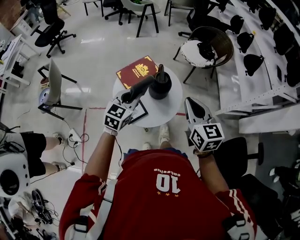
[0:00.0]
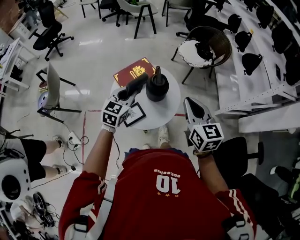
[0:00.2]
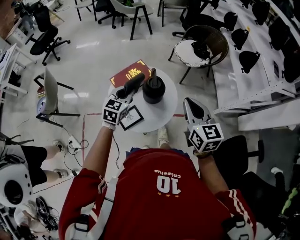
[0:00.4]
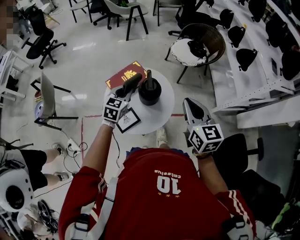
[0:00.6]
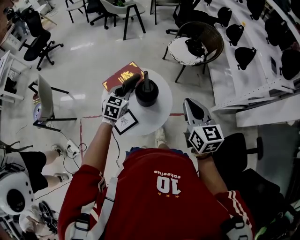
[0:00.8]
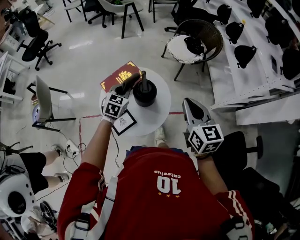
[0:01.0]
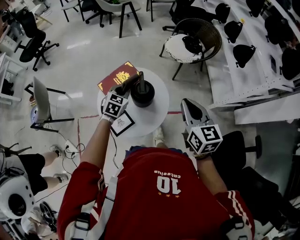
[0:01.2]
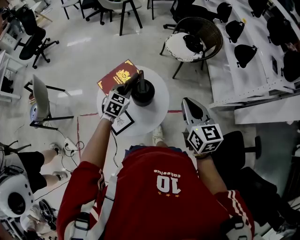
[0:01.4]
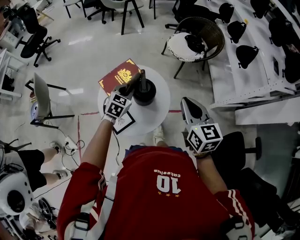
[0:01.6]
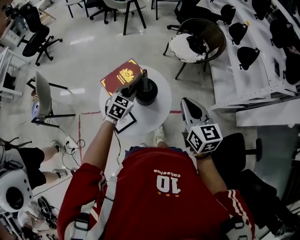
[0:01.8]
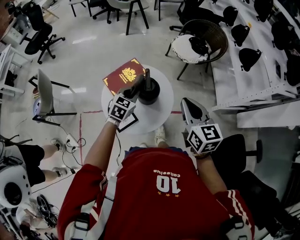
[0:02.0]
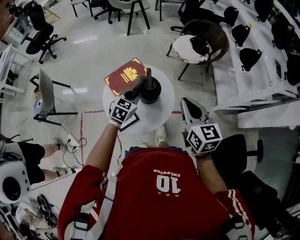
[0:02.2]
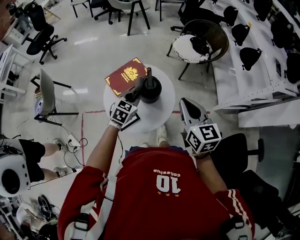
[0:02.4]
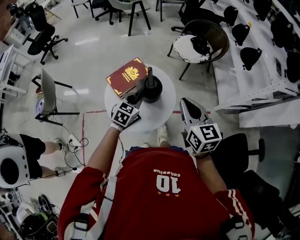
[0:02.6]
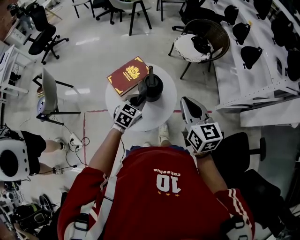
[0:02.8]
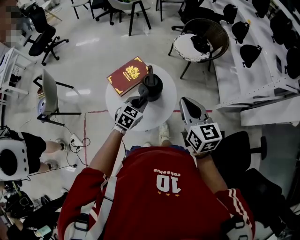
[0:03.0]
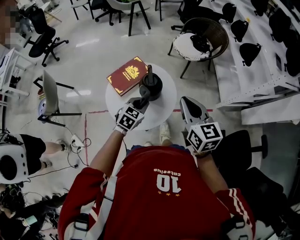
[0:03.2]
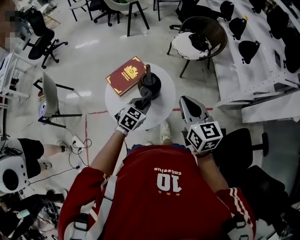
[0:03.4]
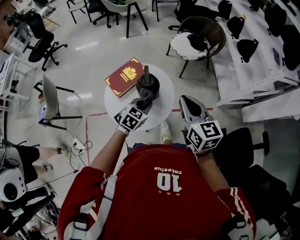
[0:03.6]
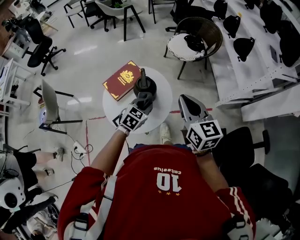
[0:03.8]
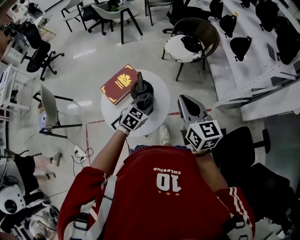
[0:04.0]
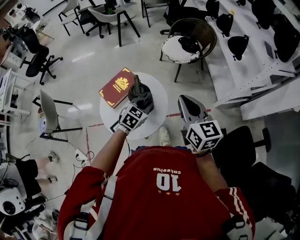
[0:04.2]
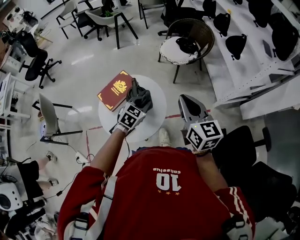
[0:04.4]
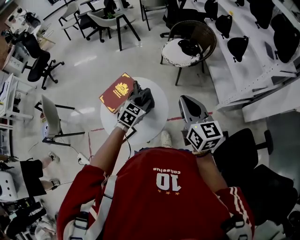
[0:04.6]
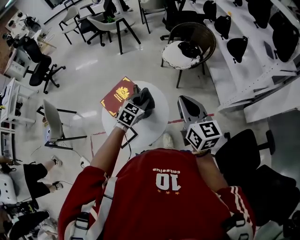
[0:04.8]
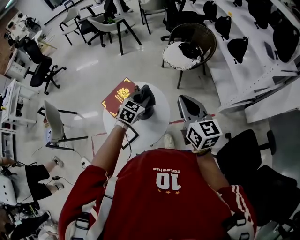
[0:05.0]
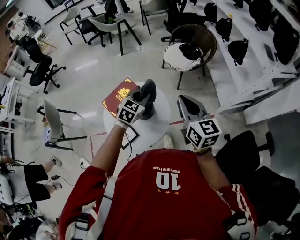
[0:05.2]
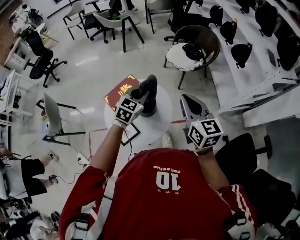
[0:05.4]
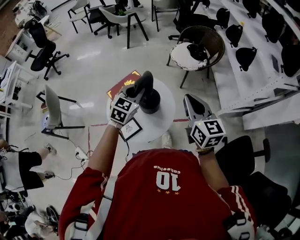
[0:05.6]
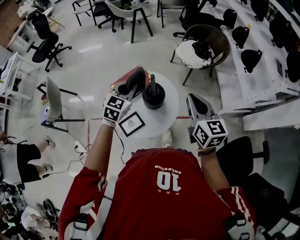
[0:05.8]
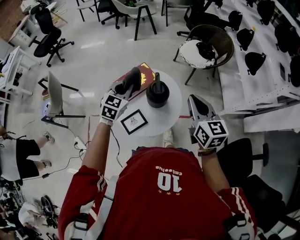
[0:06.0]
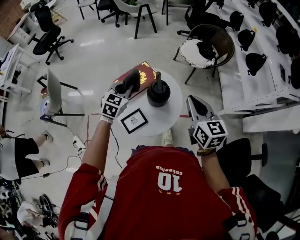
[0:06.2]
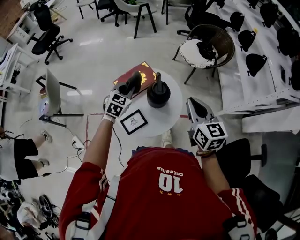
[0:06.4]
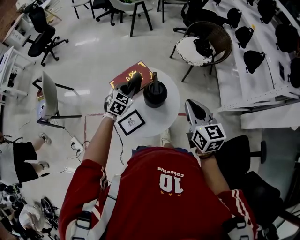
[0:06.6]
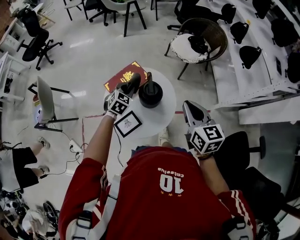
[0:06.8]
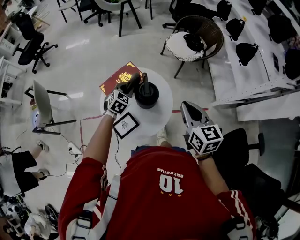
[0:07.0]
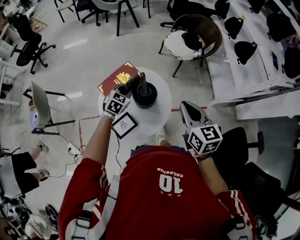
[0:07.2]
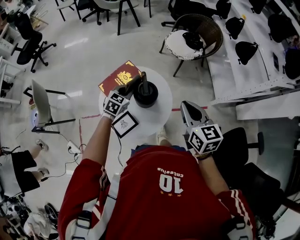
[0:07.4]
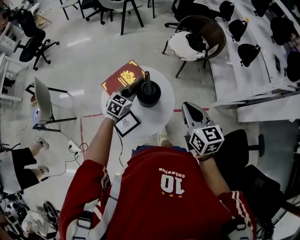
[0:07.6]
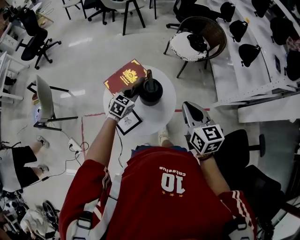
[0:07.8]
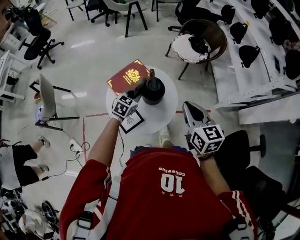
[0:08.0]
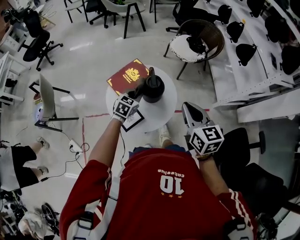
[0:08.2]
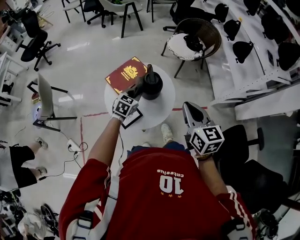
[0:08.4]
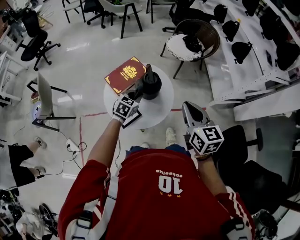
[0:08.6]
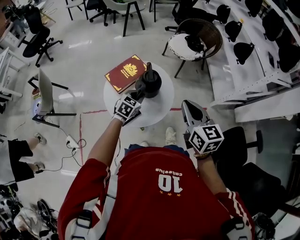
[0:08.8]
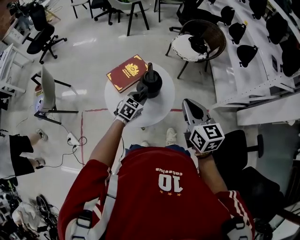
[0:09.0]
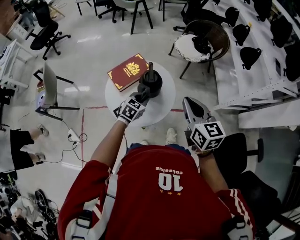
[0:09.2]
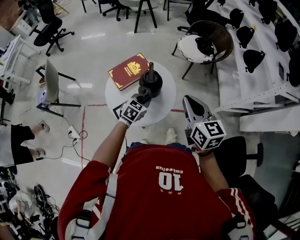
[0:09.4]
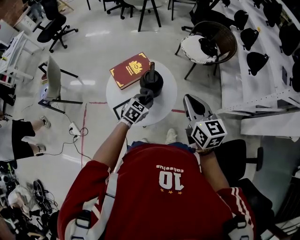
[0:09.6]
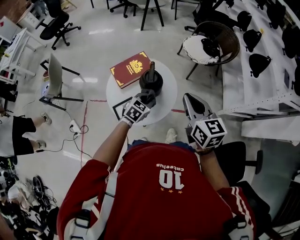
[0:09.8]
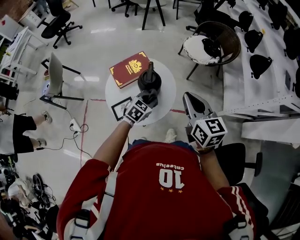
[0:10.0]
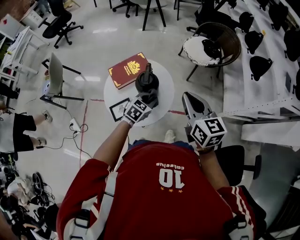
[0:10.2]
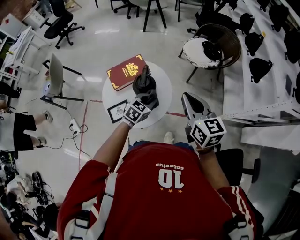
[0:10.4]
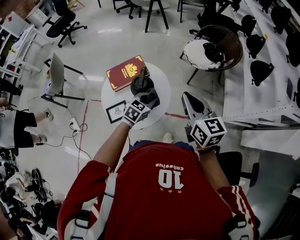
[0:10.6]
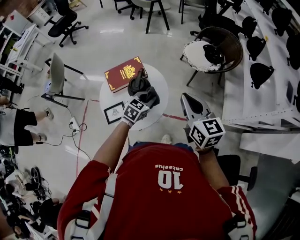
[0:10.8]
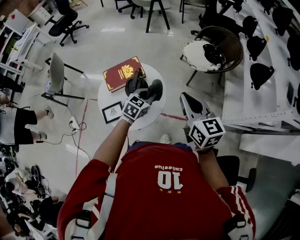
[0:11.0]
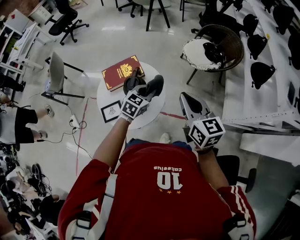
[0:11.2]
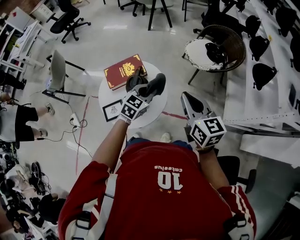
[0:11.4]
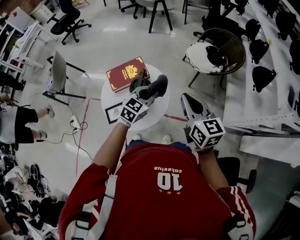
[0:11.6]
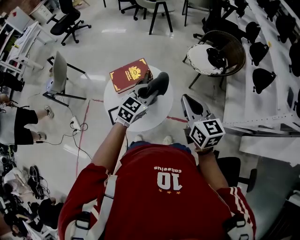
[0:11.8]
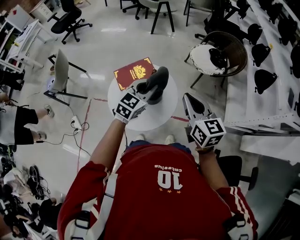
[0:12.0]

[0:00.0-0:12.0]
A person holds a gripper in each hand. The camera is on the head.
0.0 to 1.6 s: The right gripper heads forward and to the right, covering some 10 cm. The left gripper is displaced forward and downward by some 15 cm.
1.6 to 3.0 s: The right gripper ends up approximately 5 cm from where it was. The left gripper heads backward, covering approximately 10 cm.
3.0 to 4.4 s: The right gripper shifts about 10 cm to the right, while the left gripper travels to the right and forward by some 10 cm.
4.4 to 6.0 s: The right gripper shifts roughly 10 cm to the left. Meanwhile the left gripper travels to the left and upward by some 20 cm, and rotates some 20 degrees.
6.0 to 7.6 s: The left gripper goes approximately 15 cm downward.
7.6 to 9.0 s: The right gripper shifts some 5 cm backward. The left gripper goes roughly 10 cm backward and to the right.
9.0 to 10.4 s: The right gripper goes about 10 cm forward and to the right. The left gripper moves to the right, some 10 cm.
10.4 to 12.0 s: The left gripper travels upward by roughly 15 cm, and rotates about 20 degrees.

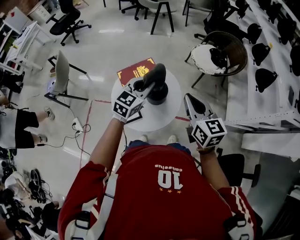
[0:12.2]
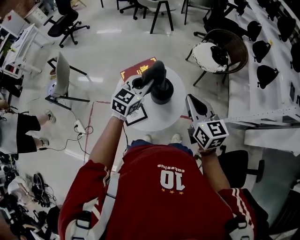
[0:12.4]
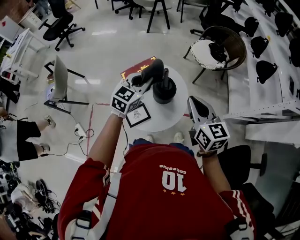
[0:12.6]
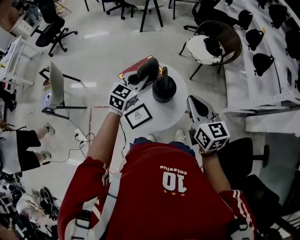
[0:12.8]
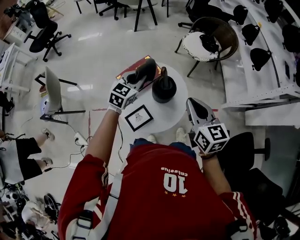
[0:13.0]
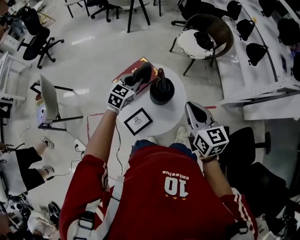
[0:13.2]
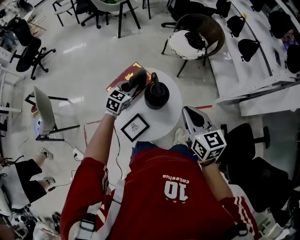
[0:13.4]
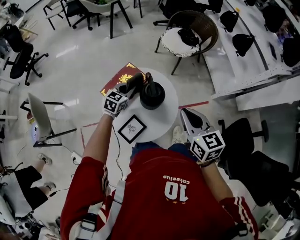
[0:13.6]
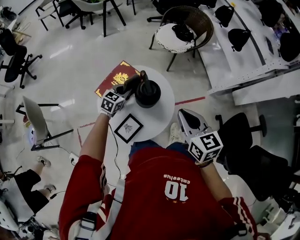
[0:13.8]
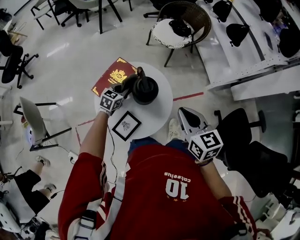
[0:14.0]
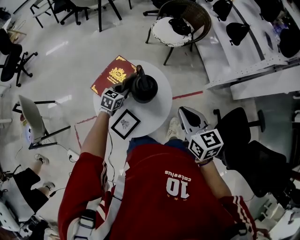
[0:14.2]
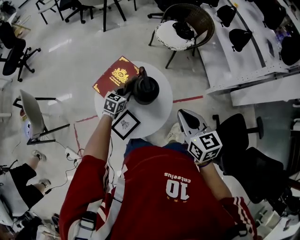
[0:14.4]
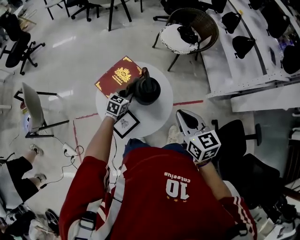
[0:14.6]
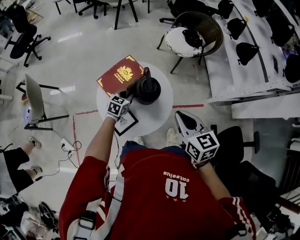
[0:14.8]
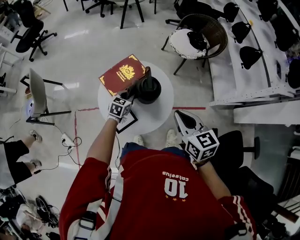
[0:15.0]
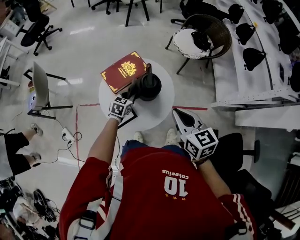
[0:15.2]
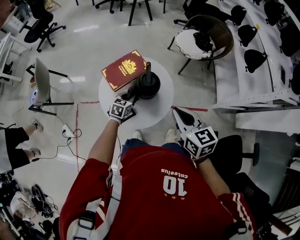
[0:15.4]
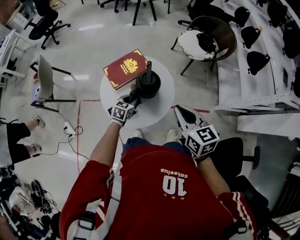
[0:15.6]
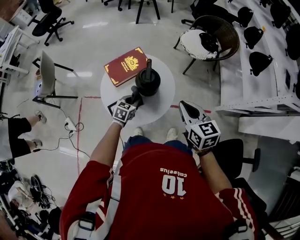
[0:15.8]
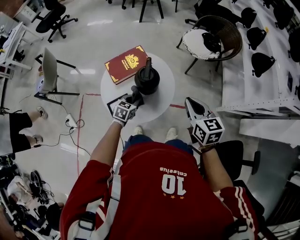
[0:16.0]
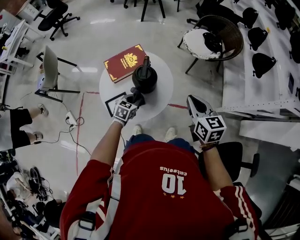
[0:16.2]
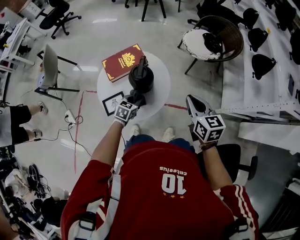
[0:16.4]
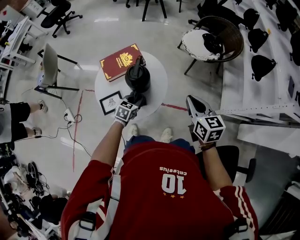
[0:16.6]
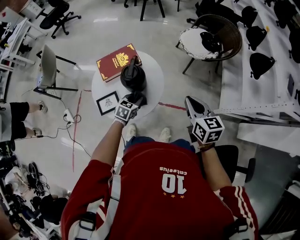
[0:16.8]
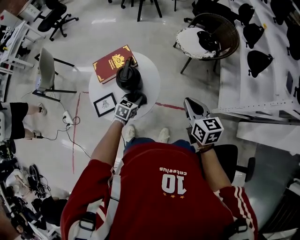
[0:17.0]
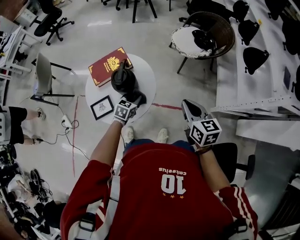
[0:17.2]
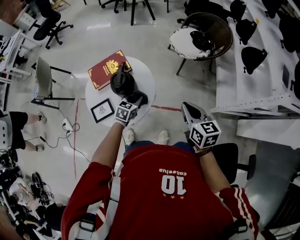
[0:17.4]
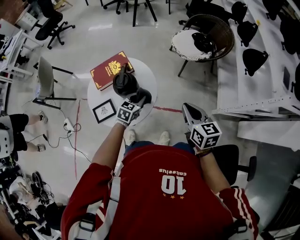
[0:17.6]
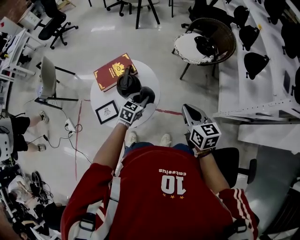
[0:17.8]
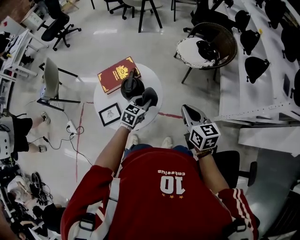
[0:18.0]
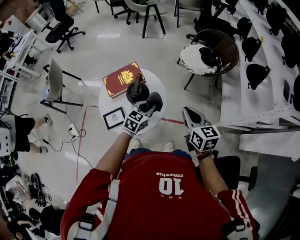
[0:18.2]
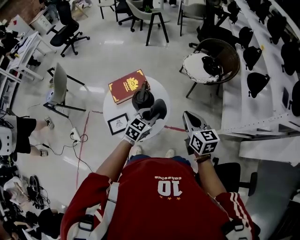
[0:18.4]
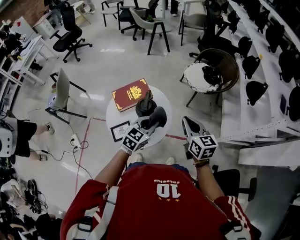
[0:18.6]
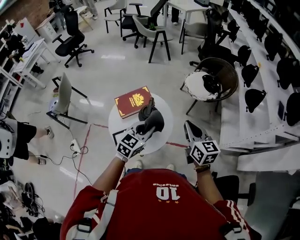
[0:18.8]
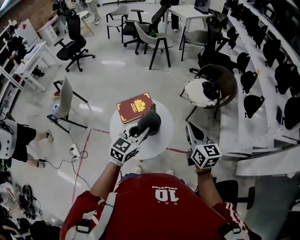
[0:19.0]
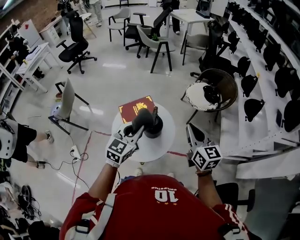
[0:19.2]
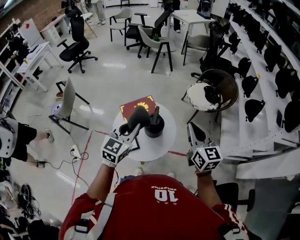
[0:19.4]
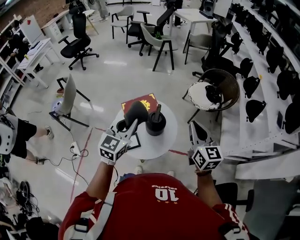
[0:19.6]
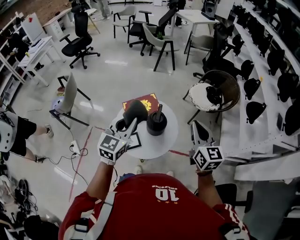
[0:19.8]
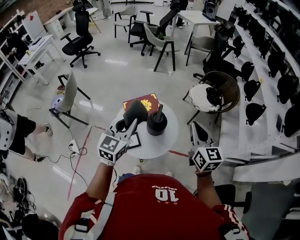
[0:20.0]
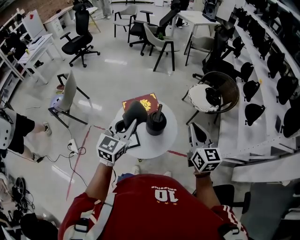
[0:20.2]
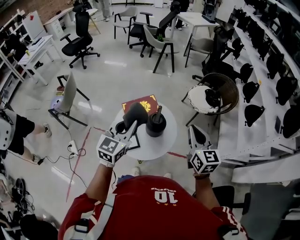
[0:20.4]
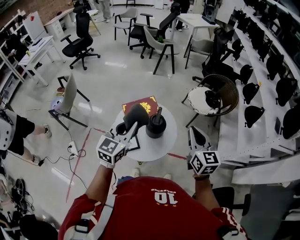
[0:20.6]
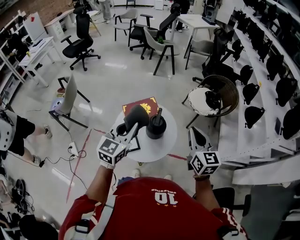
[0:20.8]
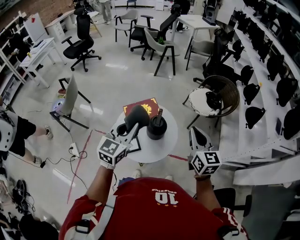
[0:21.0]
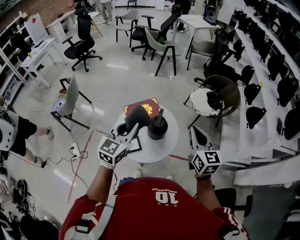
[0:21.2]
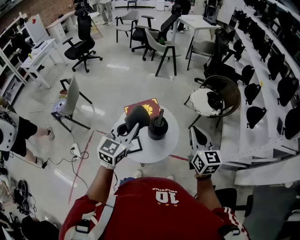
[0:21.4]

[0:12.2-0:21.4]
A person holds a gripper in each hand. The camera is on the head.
12.2 to 13.8 s: The left gripper is displaced downward by about 20 cm, and changes its angle by about 30 degrees. Meanwhile the right gripper goes roughly 10 cm downward and backward, and swivels approximately 20 degrees.
13.8 to 15.2 s: The left gripper travels backward by roughly 5 cm, and rotates some 20 degrees.
15.2 to 16.8 s: The right gripper is displaced to the right by some 20 cm. Meanwhile the left gripper heads to the right and backward, covering some 15 cm.
16.8 to 18.4 s: The right gripper shifts by approximately 5 cm; the left gripper moves upward, some 15 cm.
18.4 to 19.8 s: The left gripper heads upward and to the left, covering approximately 30 cm, and swivels approximately 30 degrees. The right gripper heads upward and to the left, covering about 15 cm.
19.8 to 21.4 s: There are only small adjustments of the grippers.

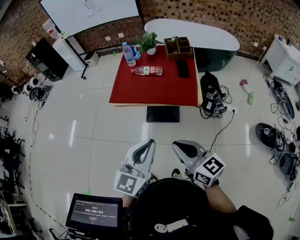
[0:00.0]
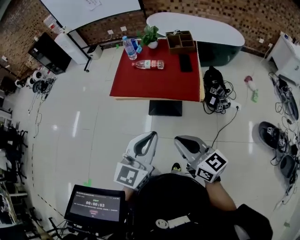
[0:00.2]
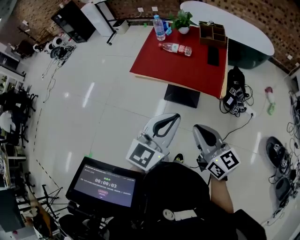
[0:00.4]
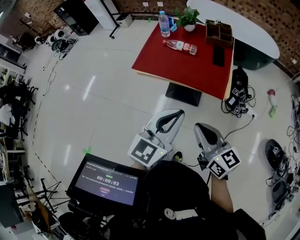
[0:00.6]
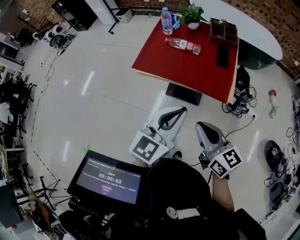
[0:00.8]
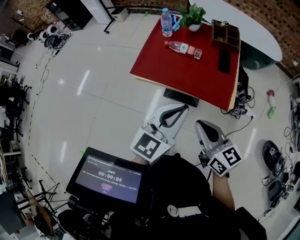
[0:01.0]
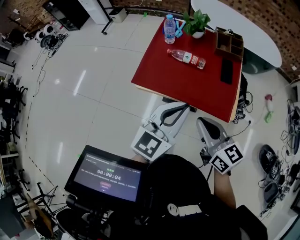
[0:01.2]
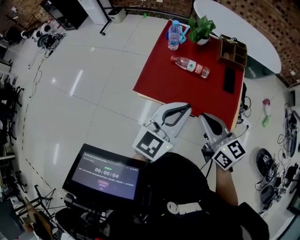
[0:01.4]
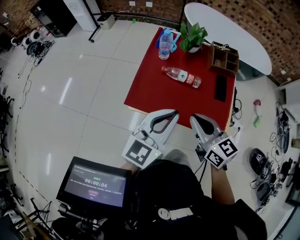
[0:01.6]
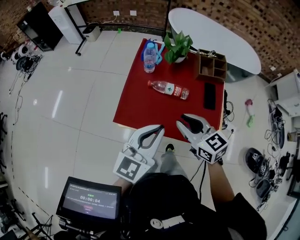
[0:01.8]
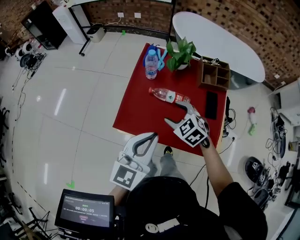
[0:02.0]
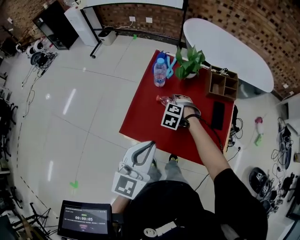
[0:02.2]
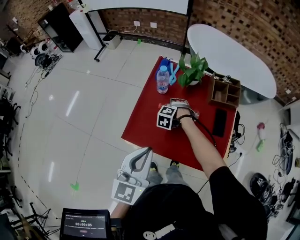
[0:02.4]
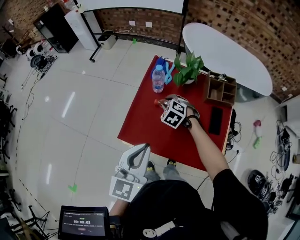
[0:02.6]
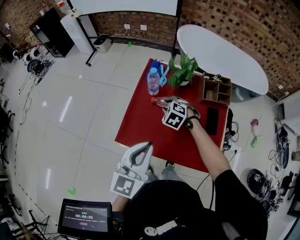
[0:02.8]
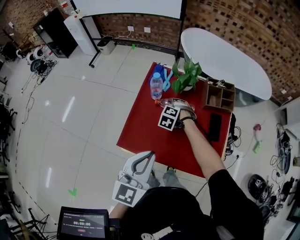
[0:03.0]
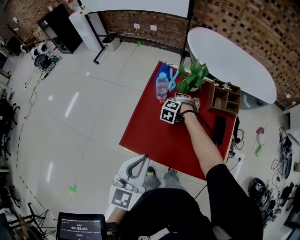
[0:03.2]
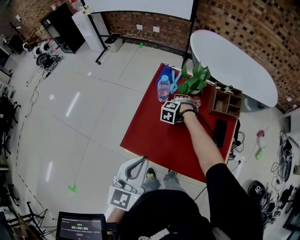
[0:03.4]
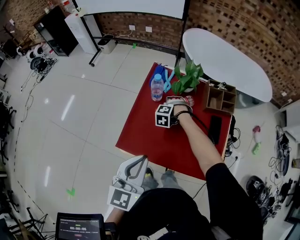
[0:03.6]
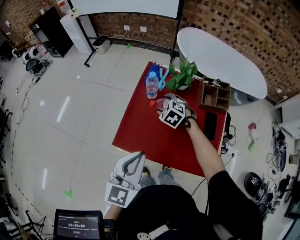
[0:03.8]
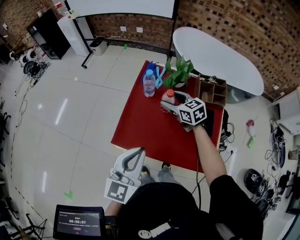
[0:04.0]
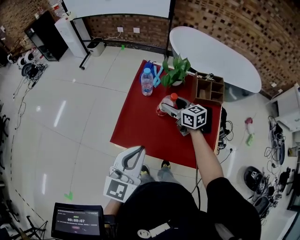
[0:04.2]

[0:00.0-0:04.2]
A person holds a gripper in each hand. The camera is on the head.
0.0 to 1.4 s: Both grippers travel together forward, some 30 cm.
1.4 to 2.8 s: The left gripper moves forward, about 10 cm, while the right gripper heads forward and downward, covering approximately 35 cm, tilts its fingers some 50 degrees downward, and opens, then closes again.
2.8 to 4.2 s: The right gripper moves to the right, approximately 5 cm, goes downward and returns, approximately 10 cm each way, tips its fingers upward by roughly 40 degrees, and opens up.
